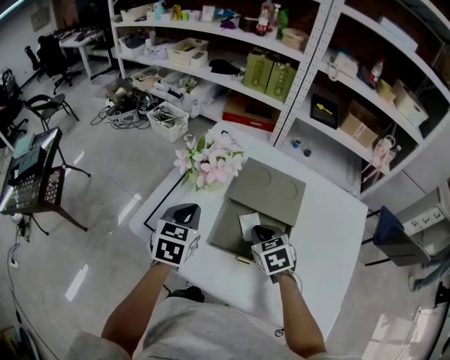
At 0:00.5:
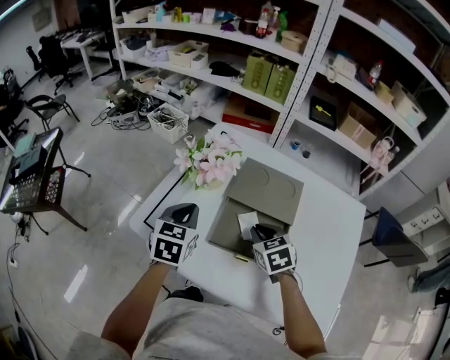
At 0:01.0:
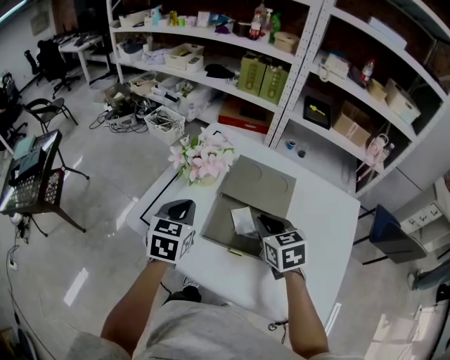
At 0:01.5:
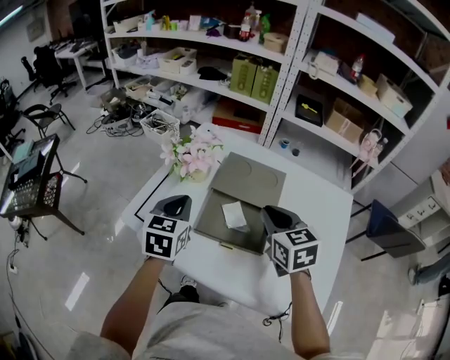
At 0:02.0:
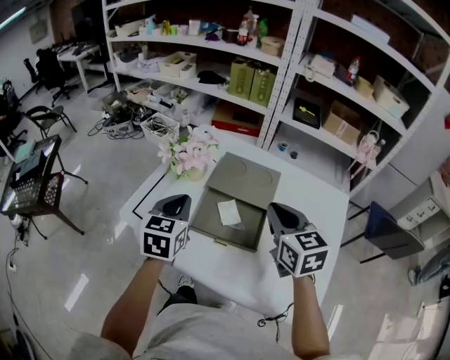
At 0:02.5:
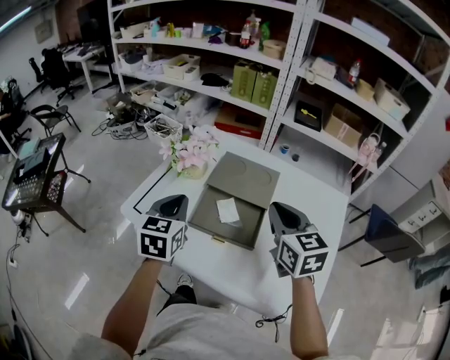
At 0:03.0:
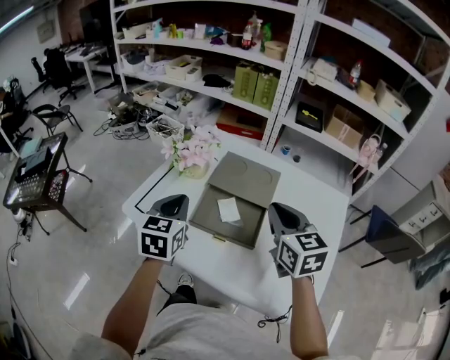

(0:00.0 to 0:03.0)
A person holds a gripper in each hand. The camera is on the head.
0:00.0 - 0:01.5: The left gripper goes approximately 5 cm upward, while the right gripper shifts approximately 15 cm upward and to the right, and changes its angle by approximately 20 degrees.
0:01.5 - 0:03.0: The left gripper ends up roughly 5 cm from where it was. The right gripper changes place by about 5 cm.

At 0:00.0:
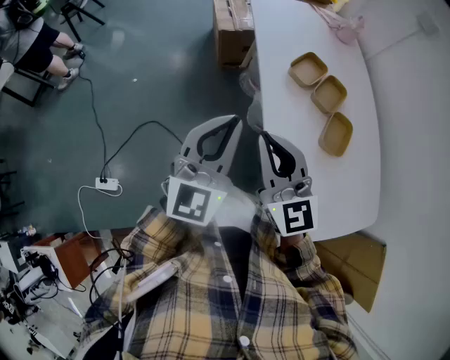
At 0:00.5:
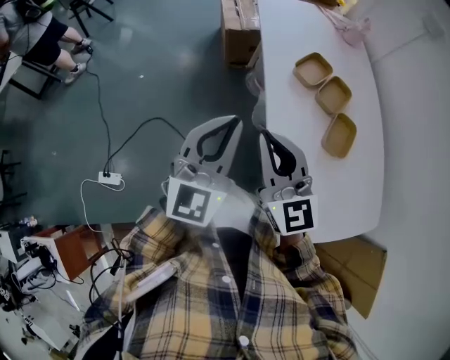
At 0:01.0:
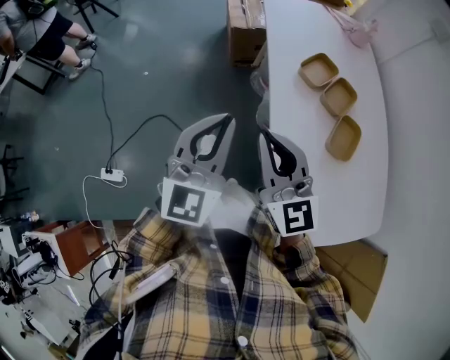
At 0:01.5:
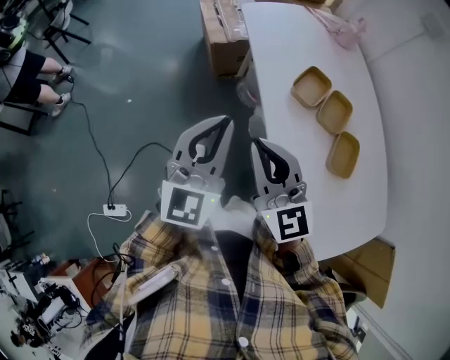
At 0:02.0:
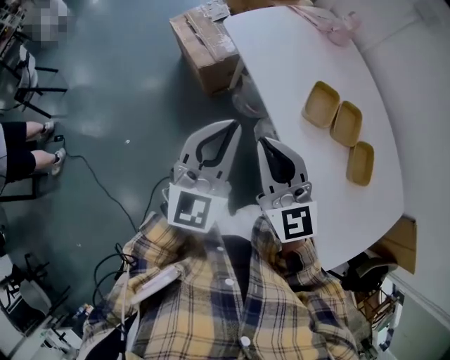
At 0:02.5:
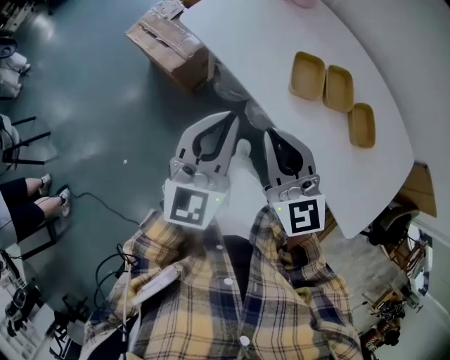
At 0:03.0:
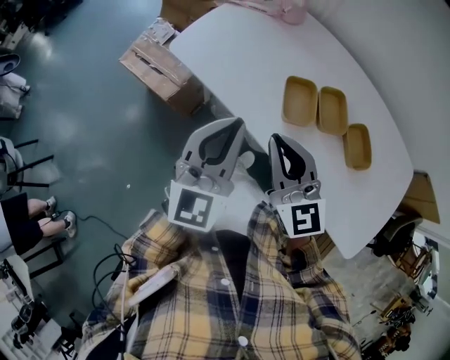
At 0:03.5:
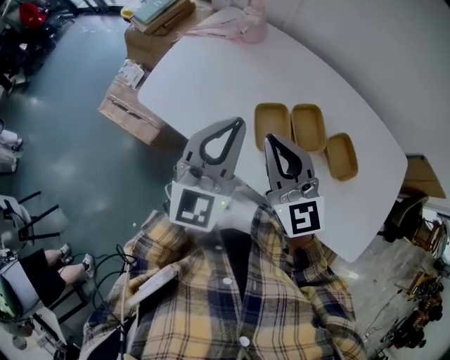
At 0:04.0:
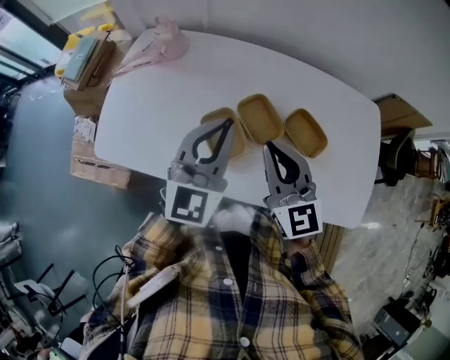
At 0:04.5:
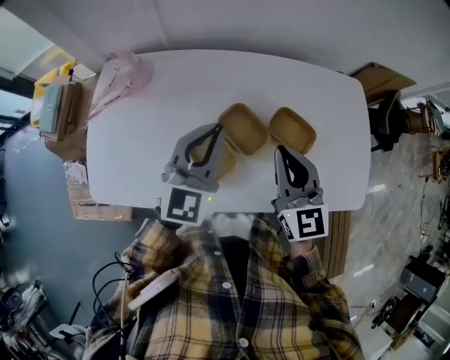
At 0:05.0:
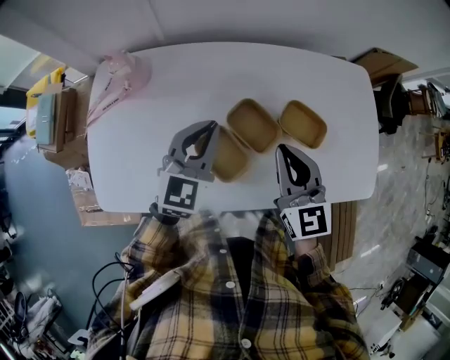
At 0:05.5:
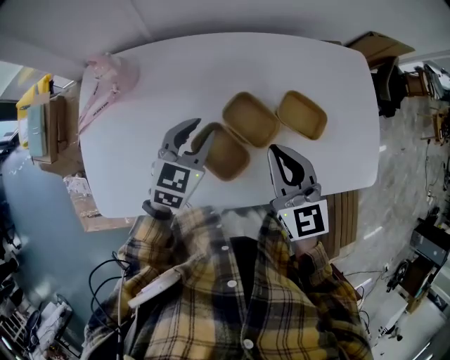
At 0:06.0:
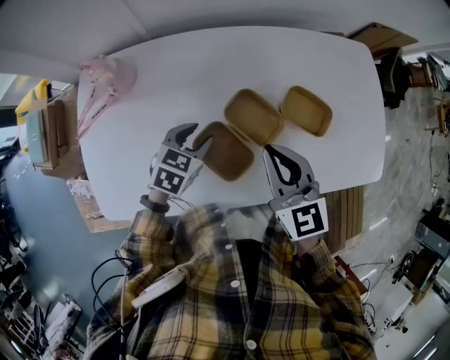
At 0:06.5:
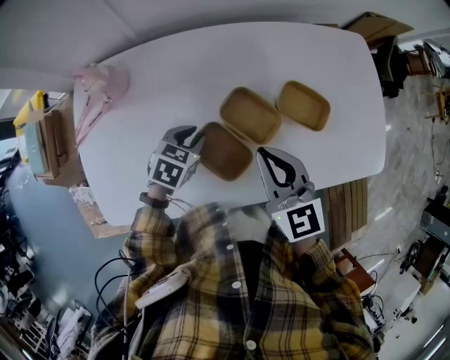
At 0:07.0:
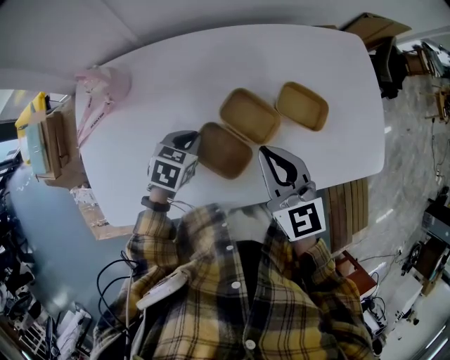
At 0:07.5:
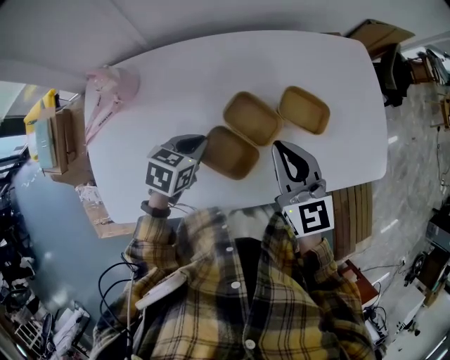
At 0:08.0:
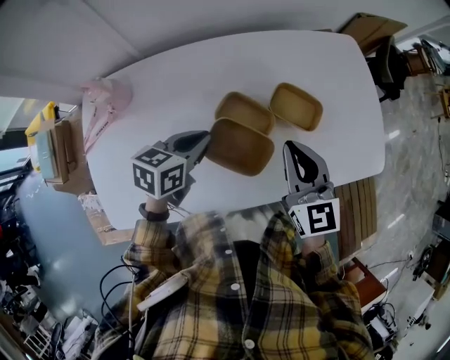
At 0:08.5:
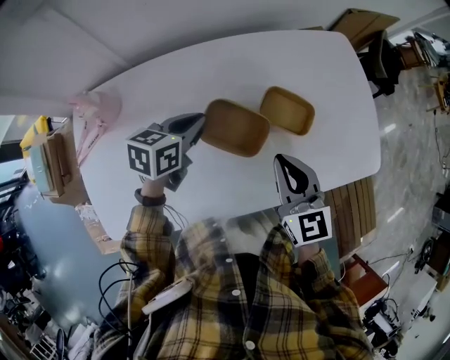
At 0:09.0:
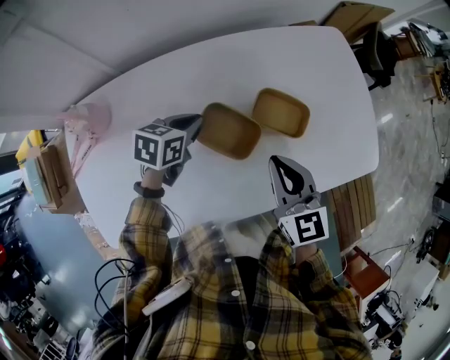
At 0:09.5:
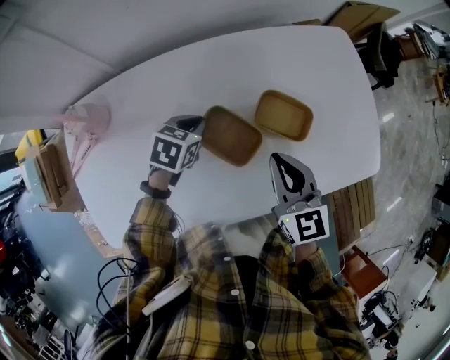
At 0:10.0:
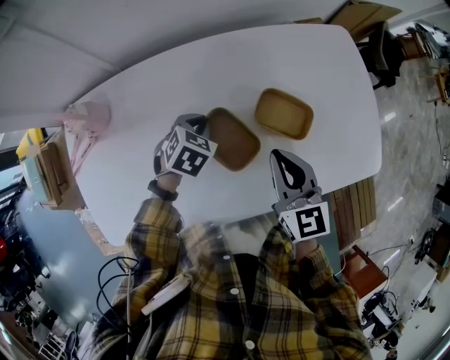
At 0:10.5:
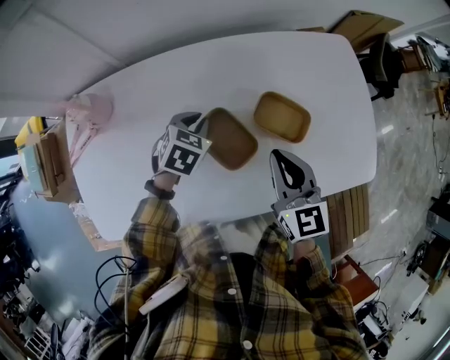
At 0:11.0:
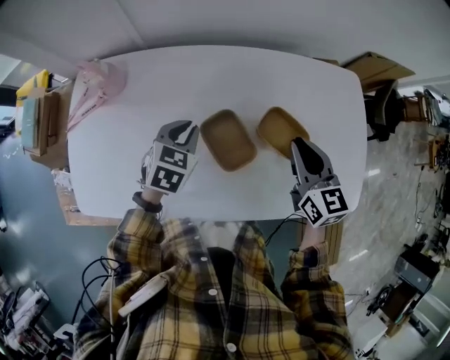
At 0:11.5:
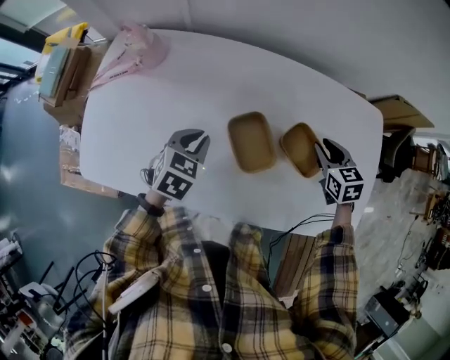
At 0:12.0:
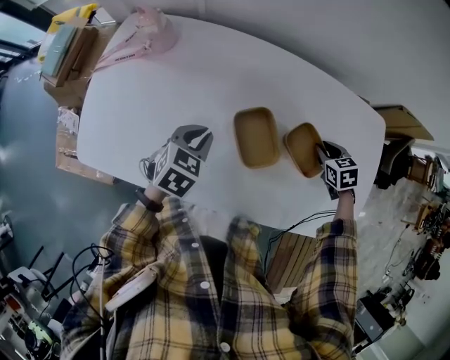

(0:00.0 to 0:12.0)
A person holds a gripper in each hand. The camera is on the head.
0:00.0 - 0:02.0: Both grippers travel together forward, about 25 cm. The right gripper turns by approximately 20 degrees; the left gripper changes its angle by some 20 degrees.
0:02.0 - 0:04.0: The left gripper shifts by approximately 35 cm, and changes its angle by roughly 50 degrees. The right gripper ends up roughly 30 cm from where it was, and turns by some 50 degrees.
0:04.0 - 0:06.0: The right gripper travels downward by some 5 cm, and rotates some 20 degrees. Meanwhile the left gripper heads downward, covering some 25 cm, tips its fingers downward by some 50 degrees, and opens up.
0:06.0 - 0:08.0: The left gripper is displaced upward by approximately 10 cm, turns by roughly 20 degrees, and closes up, while the right gripper is displaced to the right by approximately 10 cm.
0:08.0 - 0:10.0: The right gripper changes place by some 5 cm. Meanwhile the left gripper goes roughly 15 cm downward and forward, and rotates approximately 40 degrees.
0:10.0 - 0:12.0: The left gripper is displaced backward and to the left by about 15 cm, and changes its angle by roughly 30 degrees. Meanwhile the right gripper is displaced downward, forward and to the right by some 25 cm, and tilts its fingers approximately 40 degrees downward.

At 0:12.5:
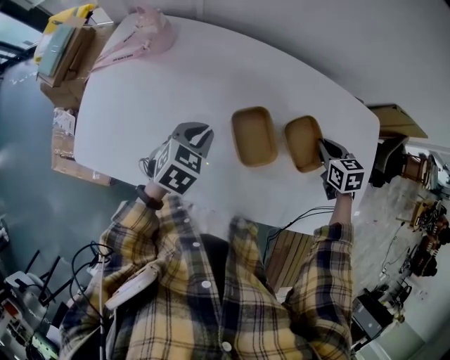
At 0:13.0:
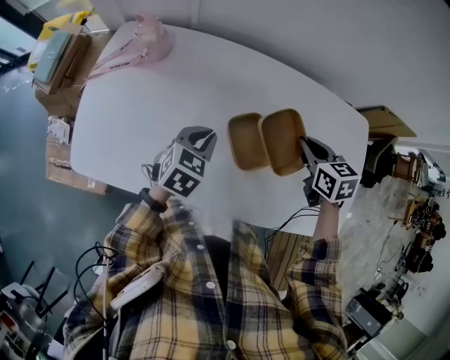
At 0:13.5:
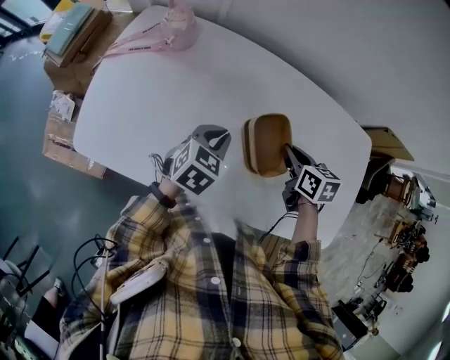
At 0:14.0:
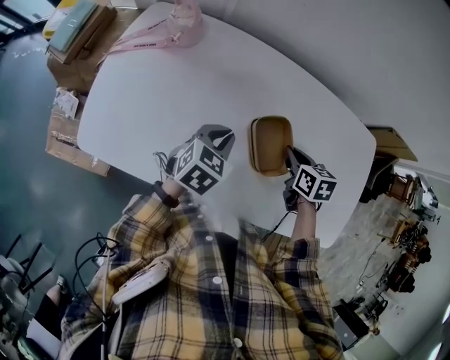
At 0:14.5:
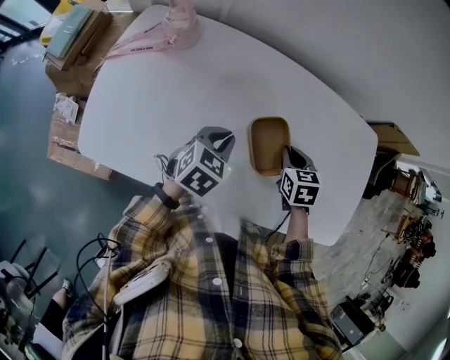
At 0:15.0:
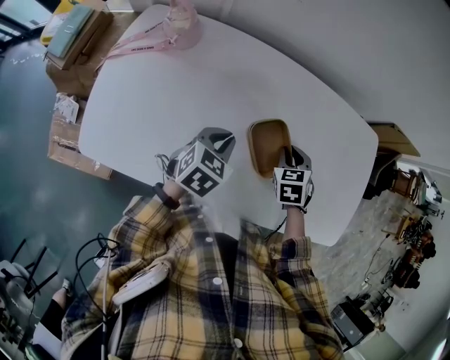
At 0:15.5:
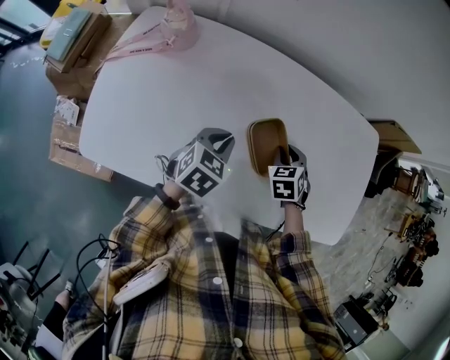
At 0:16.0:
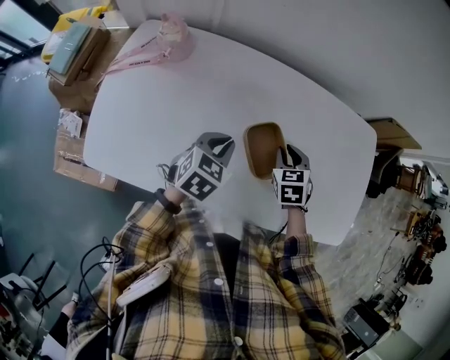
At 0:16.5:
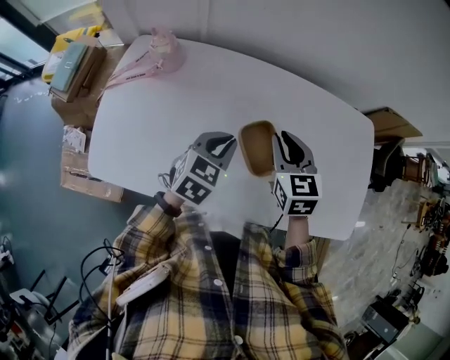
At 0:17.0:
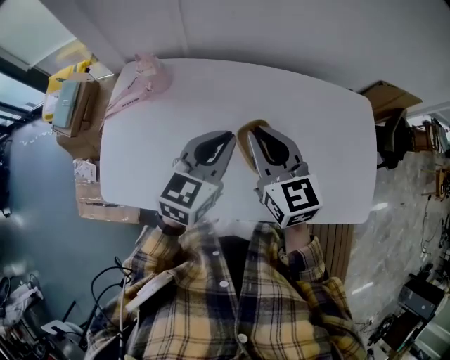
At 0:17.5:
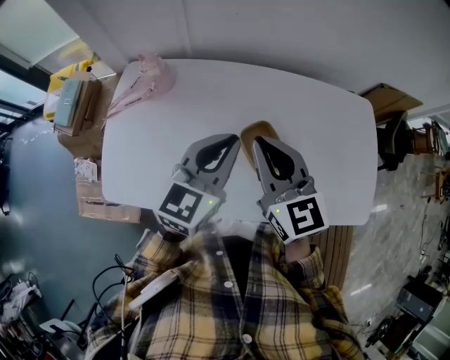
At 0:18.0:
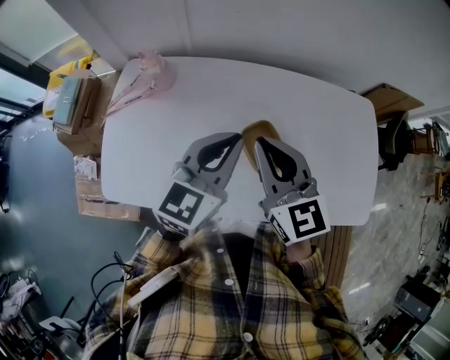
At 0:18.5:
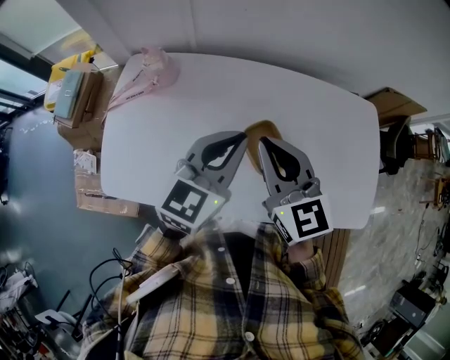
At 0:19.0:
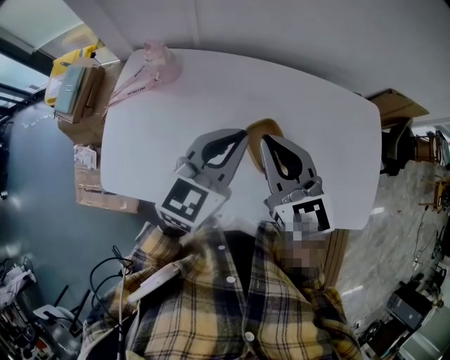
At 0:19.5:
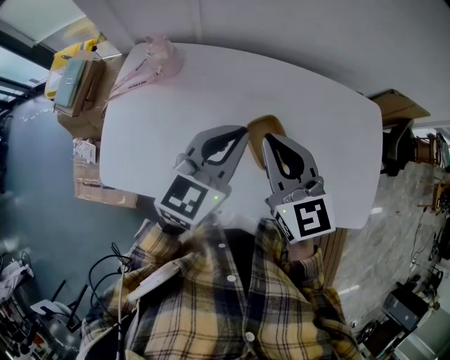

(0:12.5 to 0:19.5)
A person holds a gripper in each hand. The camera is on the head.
0:12.5 - 0:14.5: The right gripper goes approximately 15 cm to the left.
0:14.5 - 0:16.0: There are only small adjustments of the grippers.
0:16.0 - 0:17.5: The right gripper heads upward and to the left, covering some 25 cm, and tilts its fingers roughly 40 degrees upward; the left gripper heads upward, covering about 20 cm, and tilts its fingers about 30 degrees upward.
0:17.5 - 0:19.5: The grippers stay close to where they were, moving slightly.

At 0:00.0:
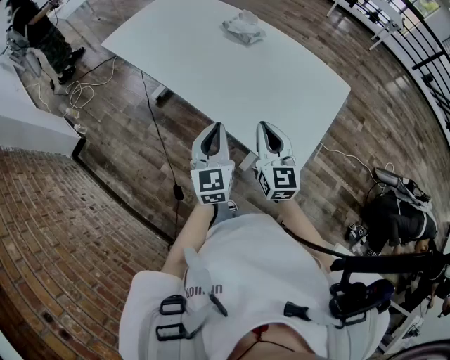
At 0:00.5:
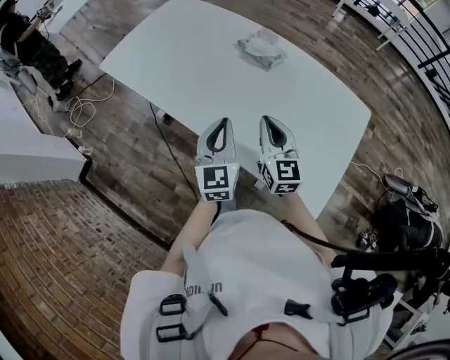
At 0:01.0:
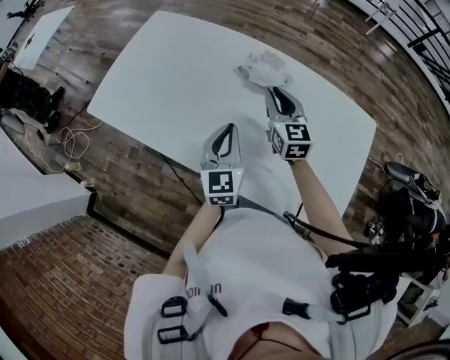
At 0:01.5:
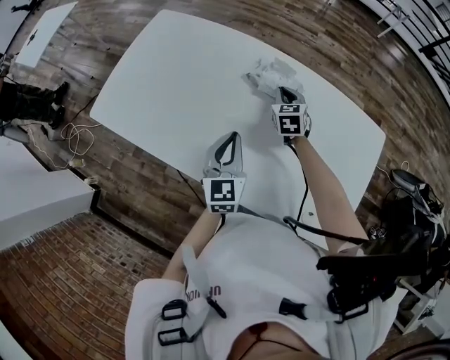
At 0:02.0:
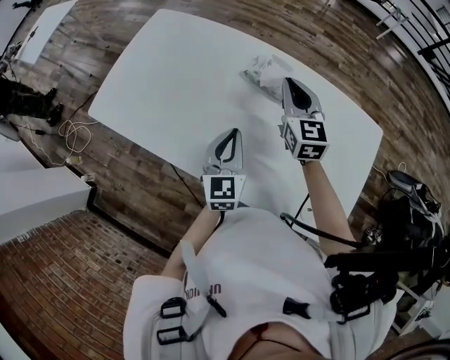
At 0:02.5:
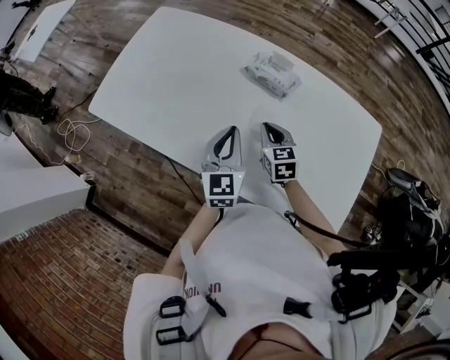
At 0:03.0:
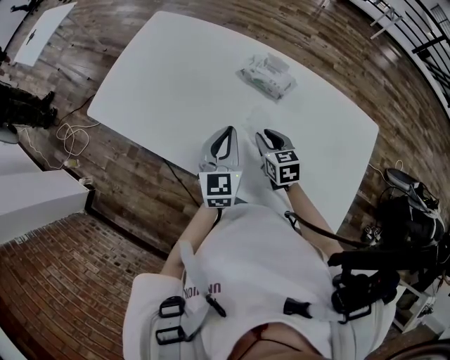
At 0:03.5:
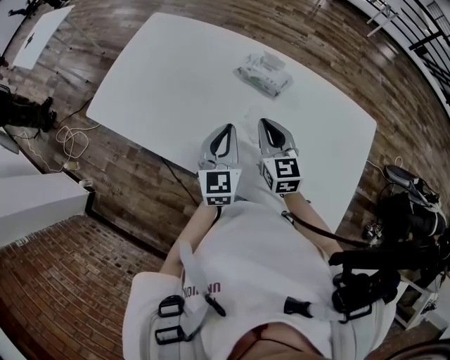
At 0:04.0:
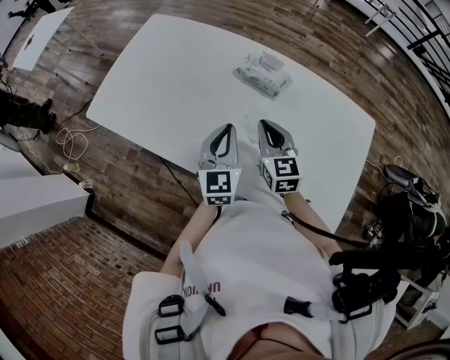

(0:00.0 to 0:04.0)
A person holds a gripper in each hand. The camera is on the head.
0:00.0 - 0:02.0: Both grippers move forward, roughly 35 cm.
0:02.0 - 0:04.0: The right gripper heads backward and downward, covering some 15 cm, and opens and closes again.
